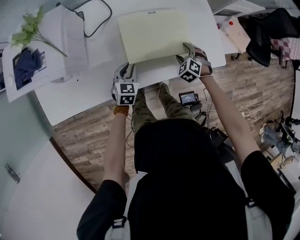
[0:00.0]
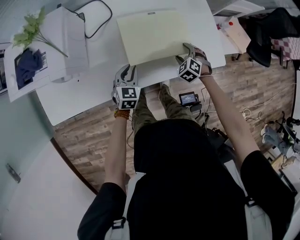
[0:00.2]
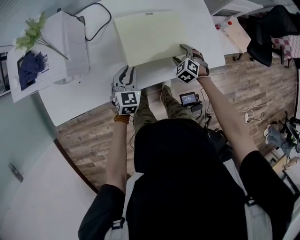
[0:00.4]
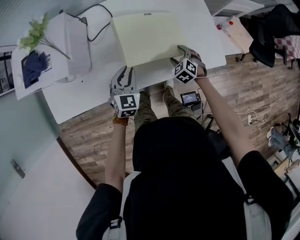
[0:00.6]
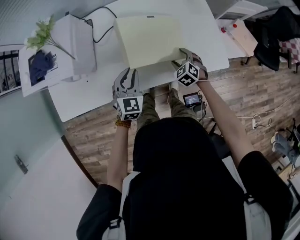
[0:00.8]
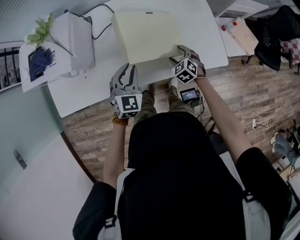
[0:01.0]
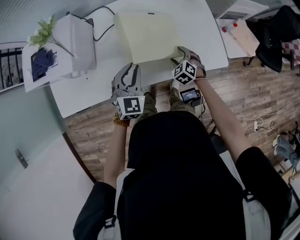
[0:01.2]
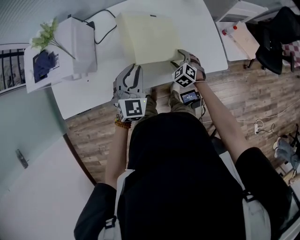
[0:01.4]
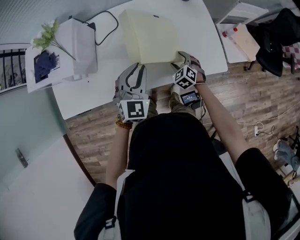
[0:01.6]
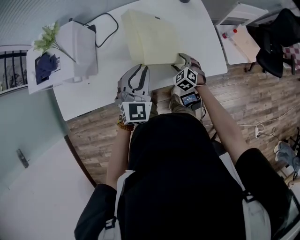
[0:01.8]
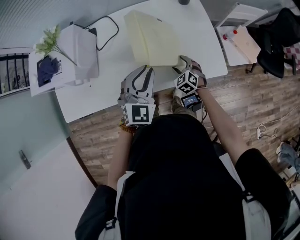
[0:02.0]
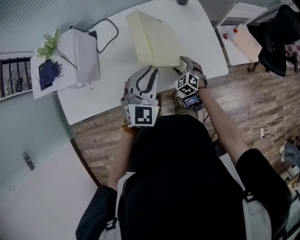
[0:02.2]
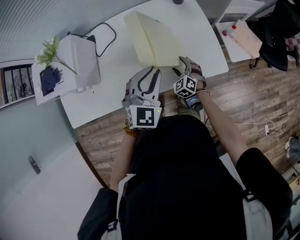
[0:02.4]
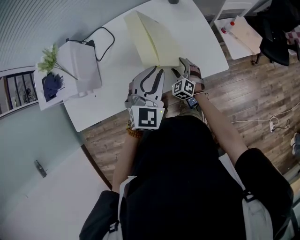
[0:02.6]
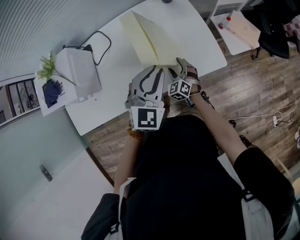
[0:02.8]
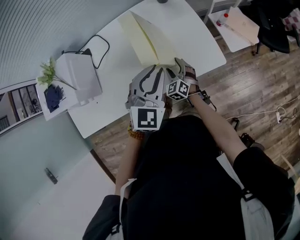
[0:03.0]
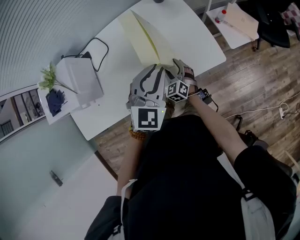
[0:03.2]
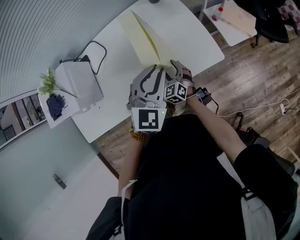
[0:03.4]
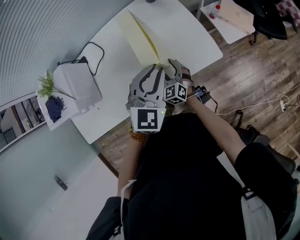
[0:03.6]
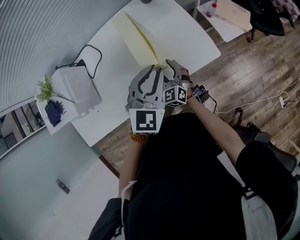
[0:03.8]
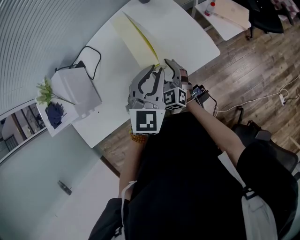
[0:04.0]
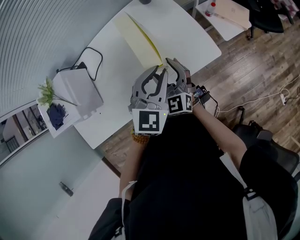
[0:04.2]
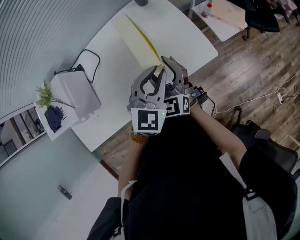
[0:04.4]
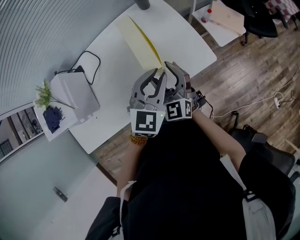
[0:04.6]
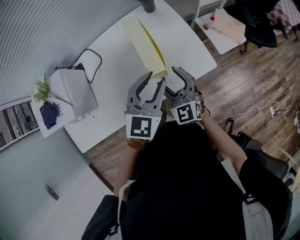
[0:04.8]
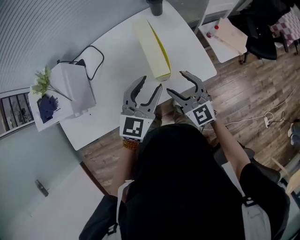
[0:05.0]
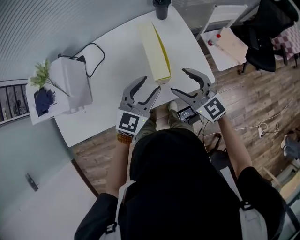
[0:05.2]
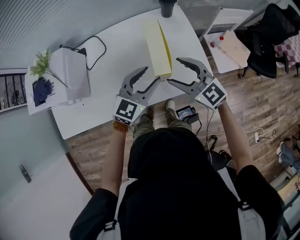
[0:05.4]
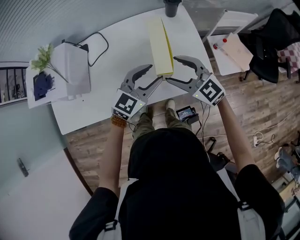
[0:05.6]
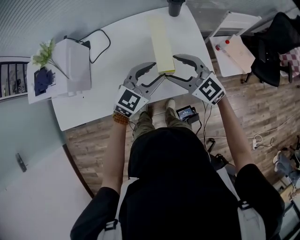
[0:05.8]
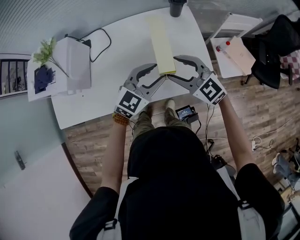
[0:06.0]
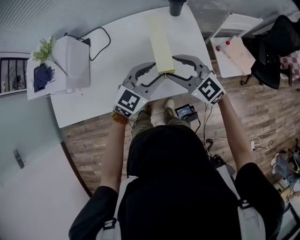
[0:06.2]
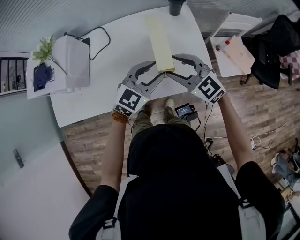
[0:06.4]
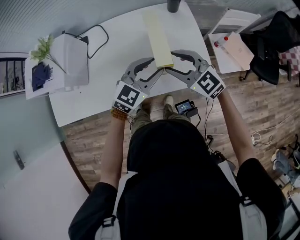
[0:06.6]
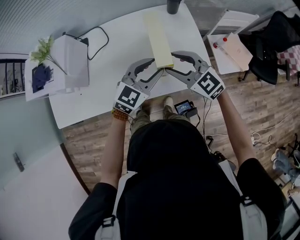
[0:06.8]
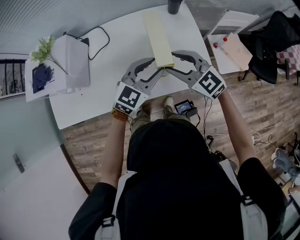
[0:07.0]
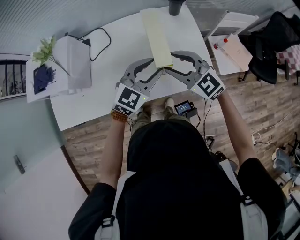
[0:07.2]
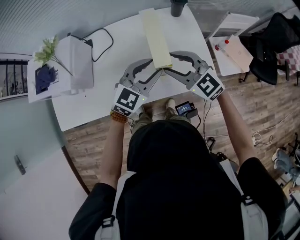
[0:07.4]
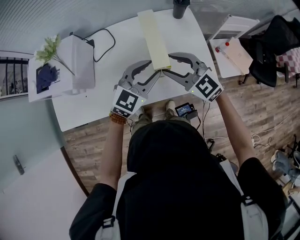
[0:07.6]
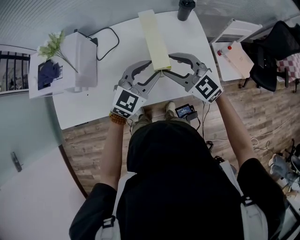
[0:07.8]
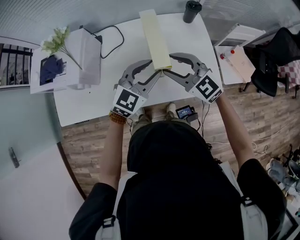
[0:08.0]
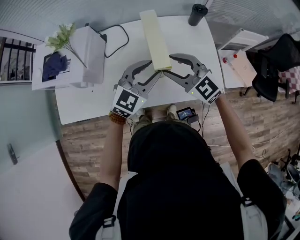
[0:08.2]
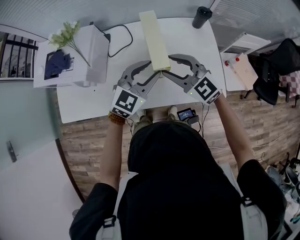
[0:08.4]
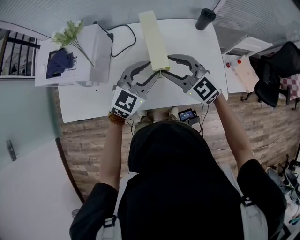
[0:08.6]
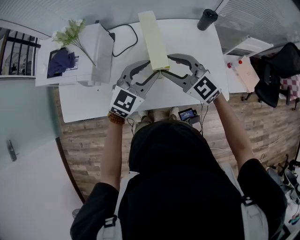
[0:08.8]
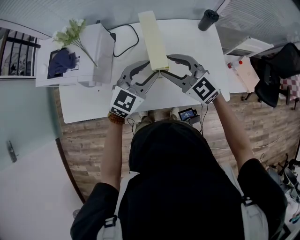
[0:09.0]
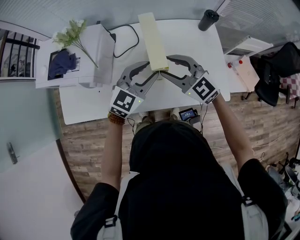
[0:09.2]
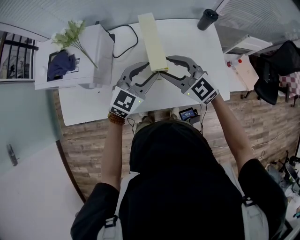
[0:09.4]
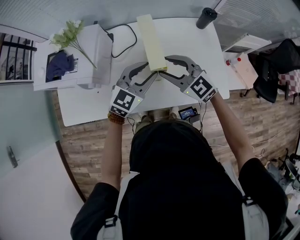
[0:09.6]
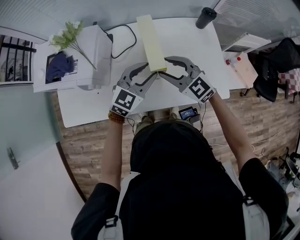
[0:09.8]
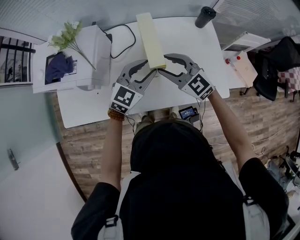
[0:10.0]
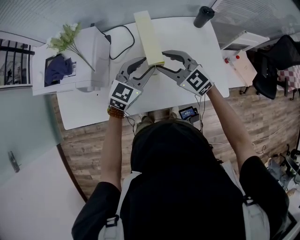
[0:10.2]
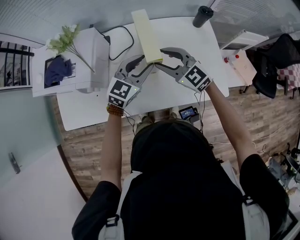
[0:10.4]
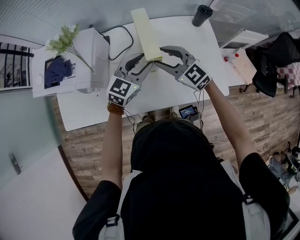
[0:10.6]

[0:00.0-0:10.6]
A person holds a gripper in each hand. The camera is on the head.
0:00.0 to 0:01.6: The left gripper is displaced upward by roughly 20 cm, and changes its angle by approximately 30 degrees.
0:01.6 to 0:03.0: The left gripper travels to the right by about 15 cm. The right gripper rotates roughly 20 degrees.
0:03.0 to 0:04.6: The right gripper heads upward, covering roughly 20 cm, and changes its angle by about 20 degrees.
0:04.6 to 0:06.0: The left gripper changes place by roughly 5 cm, and opens its fingers. Meanwhile the right gripper swivels some 50 degrees.
0:06.0 to 0:07.6: The two grippers go roughly 5 cm to the left.
0:07.6 to 0:09.0: Both grippers move to the left, approximately 10 cm.
0:09.0 to 0:10.6: Both grippers move forward, some 5 cm.

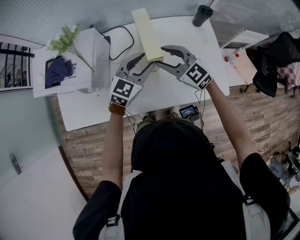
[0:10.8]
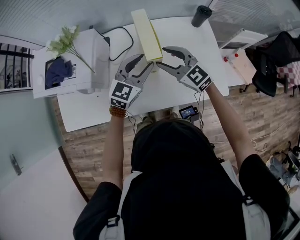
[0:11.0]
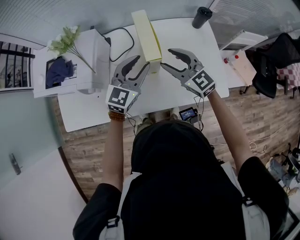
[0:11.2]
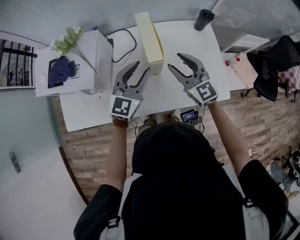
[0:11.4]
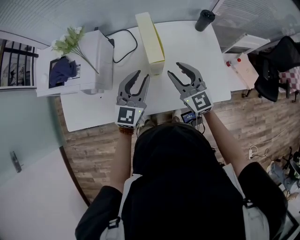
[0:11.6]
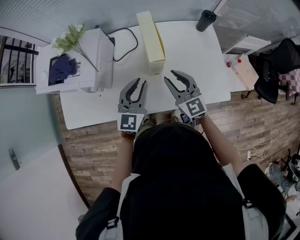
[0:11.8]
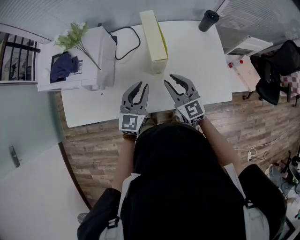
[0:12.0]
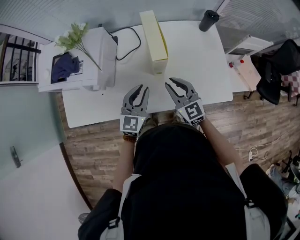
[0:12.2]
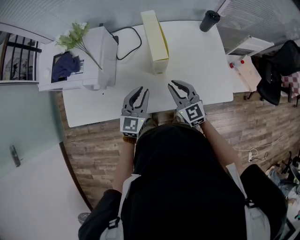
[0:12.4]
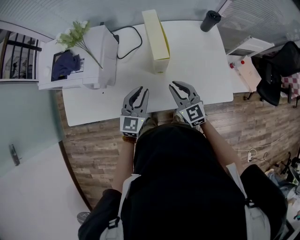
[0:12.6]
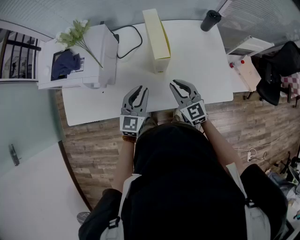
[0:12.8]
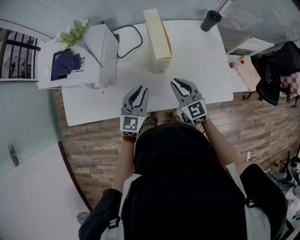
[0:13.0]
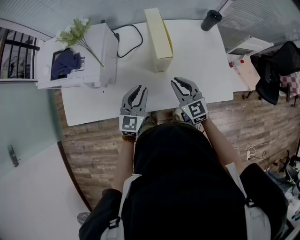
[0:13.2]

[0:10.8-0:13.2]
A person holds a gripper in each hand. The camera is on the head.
0:10.8 to 0:12.0: The left gripper shifts some 10 cm backward and to the left, swivels approximately 20 degrees, and closes up; the right gripper moves backward, some 10 cm, and turns by approximately 20 degrees.
0:12.0 to 0:13.2: The grippers move only a little.

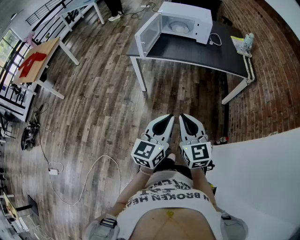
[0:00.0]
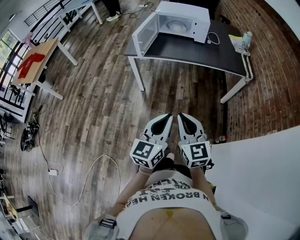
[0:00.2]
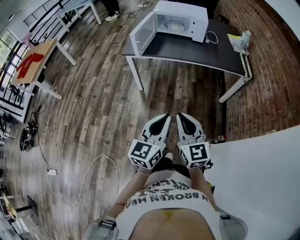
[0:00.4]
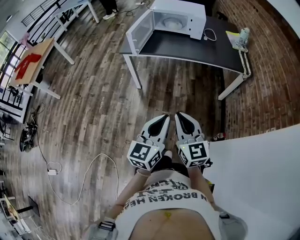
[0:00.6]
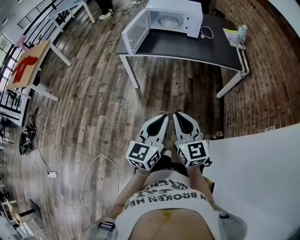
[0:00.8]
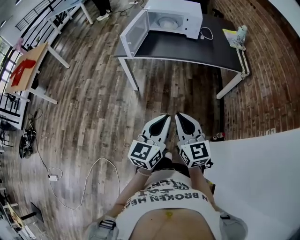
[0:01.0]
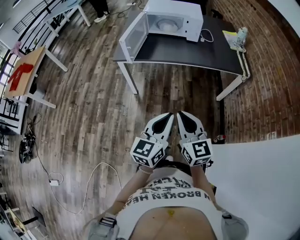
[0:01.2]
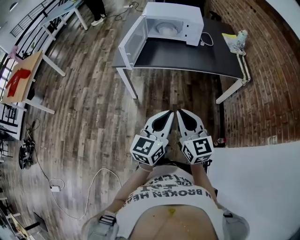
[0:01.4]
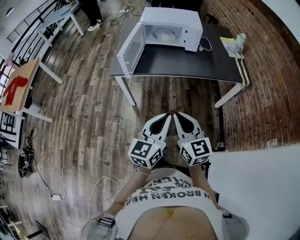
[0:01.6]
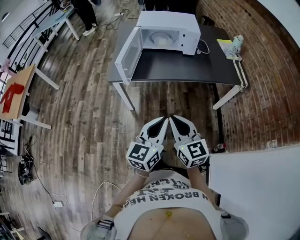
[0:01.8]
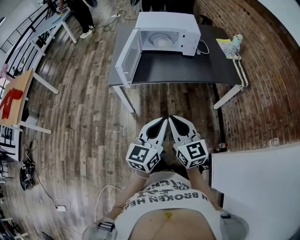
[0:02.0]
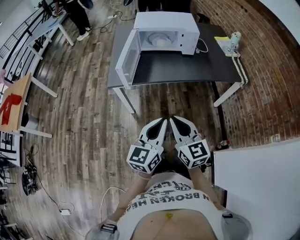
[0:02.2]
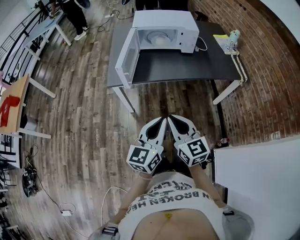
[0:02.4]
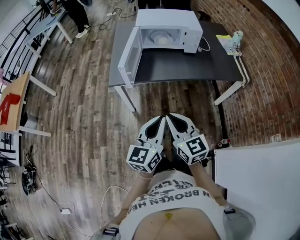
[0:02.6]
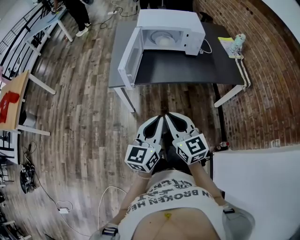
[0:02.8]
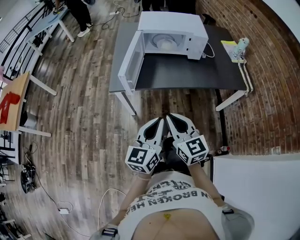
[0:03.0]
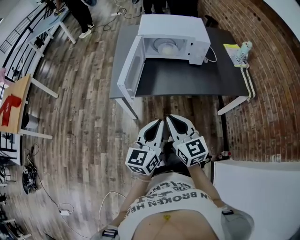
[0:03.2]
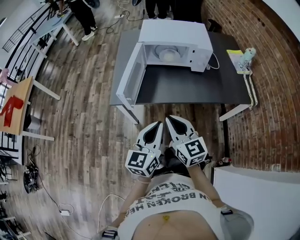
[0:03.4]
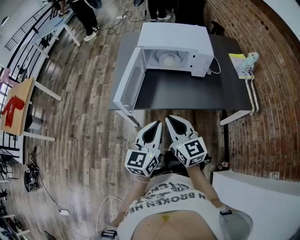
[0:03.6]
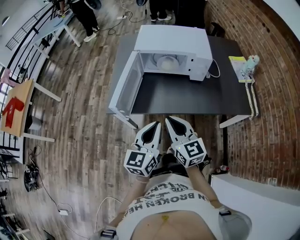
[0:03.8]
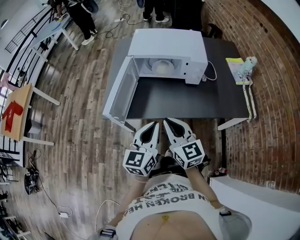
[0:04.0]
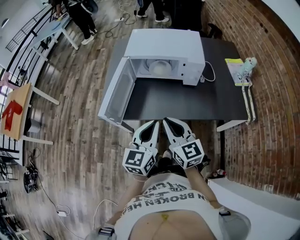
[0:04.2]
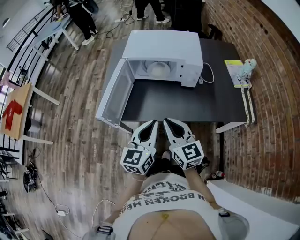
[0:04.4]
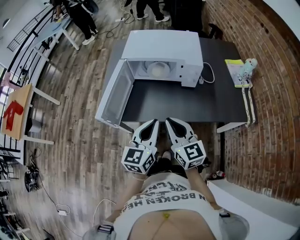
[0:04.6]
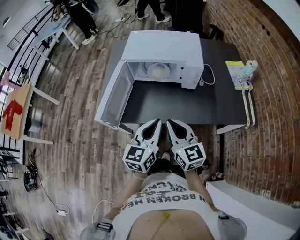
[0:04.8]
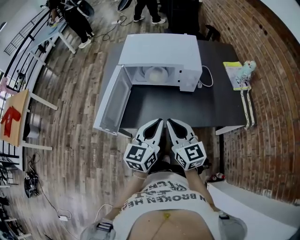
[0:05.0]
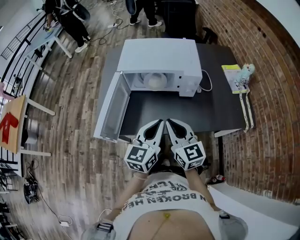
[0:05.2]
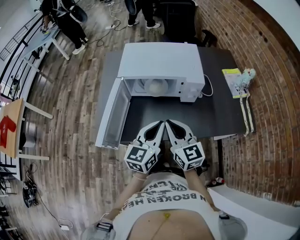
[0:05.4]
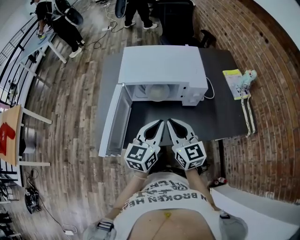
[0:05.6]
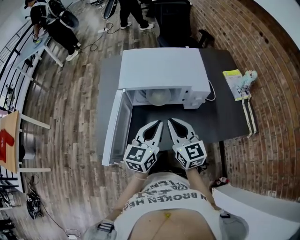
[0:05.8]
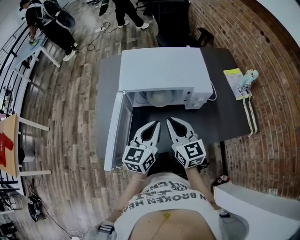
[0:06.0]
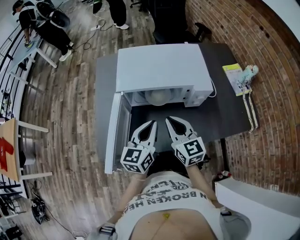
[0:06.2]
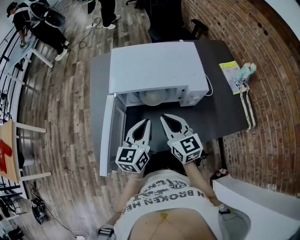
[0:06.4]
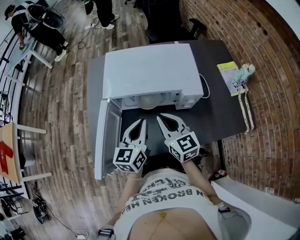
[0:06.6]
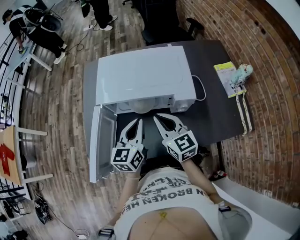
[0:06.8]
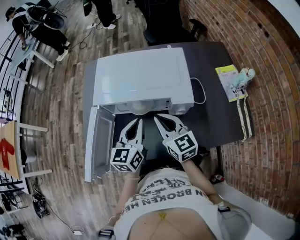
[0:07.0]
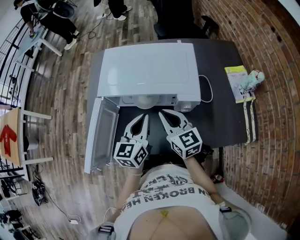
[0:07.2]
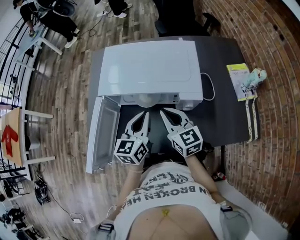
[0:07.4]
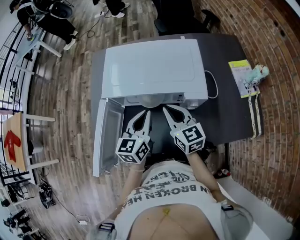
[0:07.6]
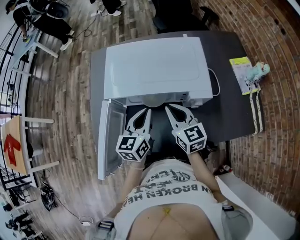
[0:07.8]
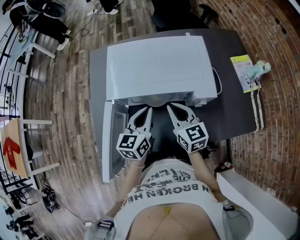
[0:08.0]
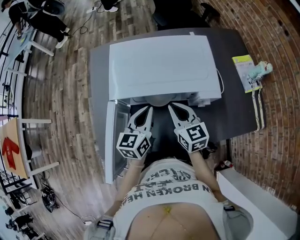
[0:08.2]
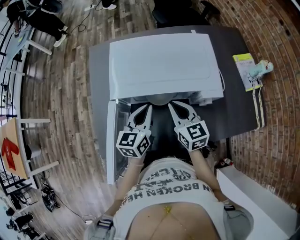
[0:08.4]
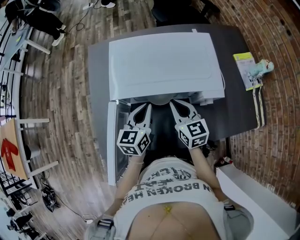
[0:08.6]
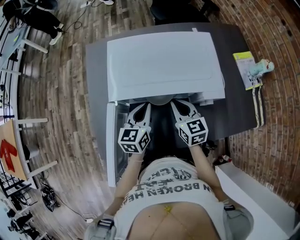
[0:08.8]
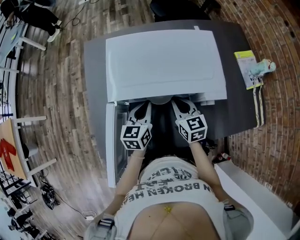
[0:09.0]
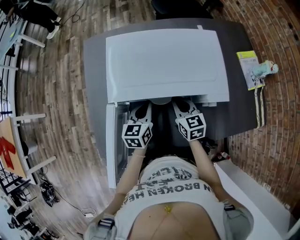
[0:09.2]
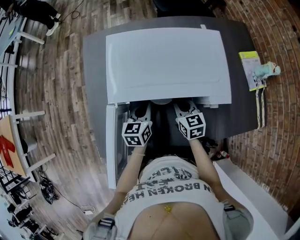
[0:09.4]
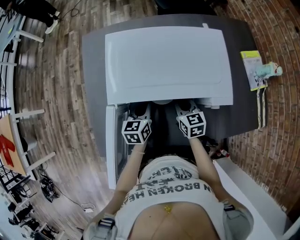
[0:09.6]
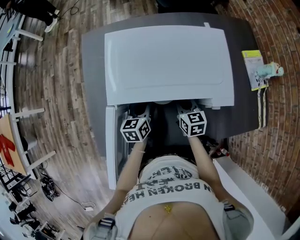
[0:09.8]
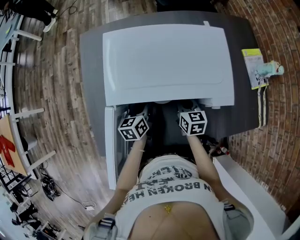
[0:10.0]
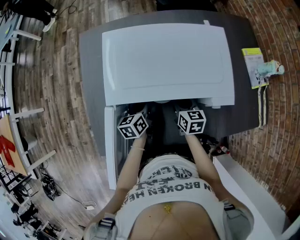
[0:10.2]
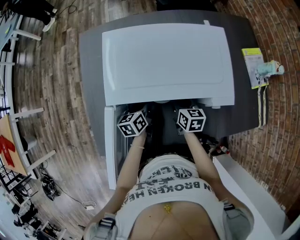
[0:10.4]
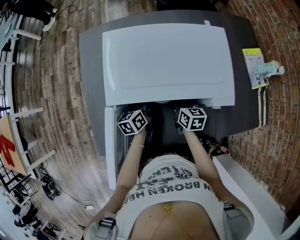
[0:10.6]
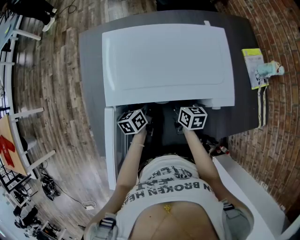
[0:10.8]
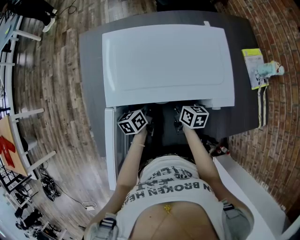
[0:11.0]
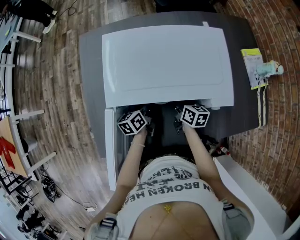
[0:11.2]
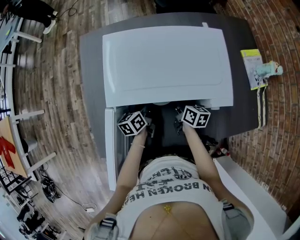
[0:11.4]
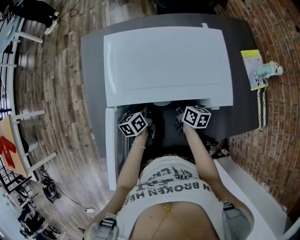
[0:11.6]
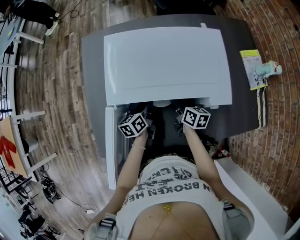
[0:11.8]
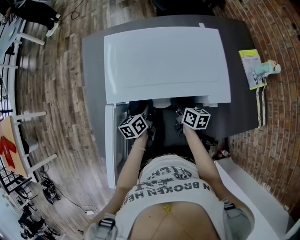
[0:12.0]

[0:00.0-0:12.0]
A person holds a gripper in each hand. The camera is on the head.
0:00.0 to 0:01.6: Both grippers move forward, roughly 20 cm.
0:01.6 to 0:03.0: Both grippers move forward and to the left, roughly 15 cm.
0:03.0 to 0:04.4: The two grippers go some 25 cm forward and to the right.
0:04.4 to 0:06.0: The two grippers go about 20 cm forward.
0:06.0 to 0:07.6: The right gripper shifts approximately 10 cm forward and to the right. The left gripper goes roughly 10 cm forward.
0:07.6 to 0:09.0: The left gripper travels downward, forward and to the left by approximately 15 cm; the right gripper moves downward and forward, approximately 10 cm.
0:09.0 to 0:10.4: Both grippers travel together downward, roughly 10 cm. The left gripper turns by some 20 degrees, and opens up. Meanwhile the right gripper turns by about 20 degrees, and opens.
0:10.4 to 0:12.0: The grippers make only small movements.
